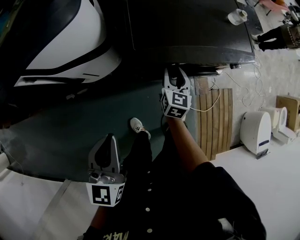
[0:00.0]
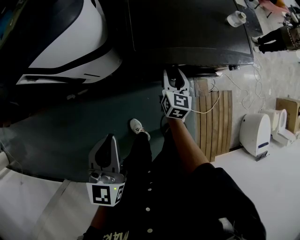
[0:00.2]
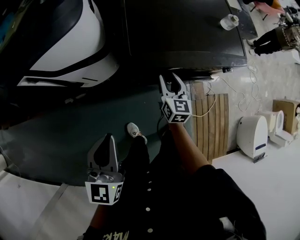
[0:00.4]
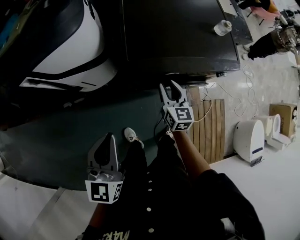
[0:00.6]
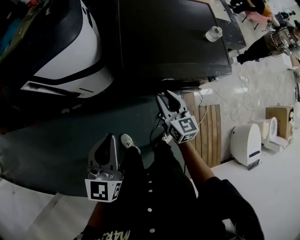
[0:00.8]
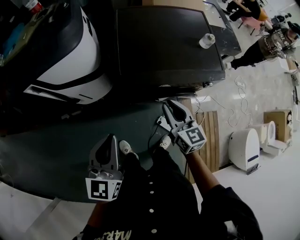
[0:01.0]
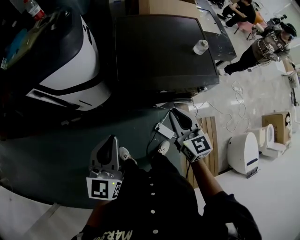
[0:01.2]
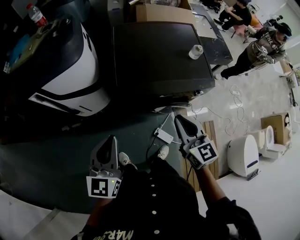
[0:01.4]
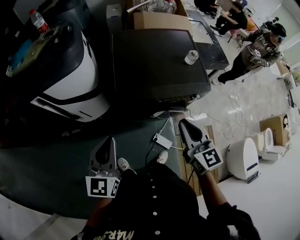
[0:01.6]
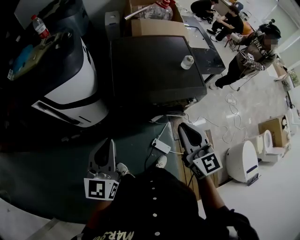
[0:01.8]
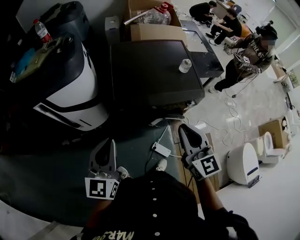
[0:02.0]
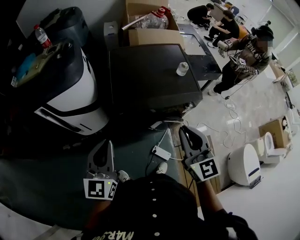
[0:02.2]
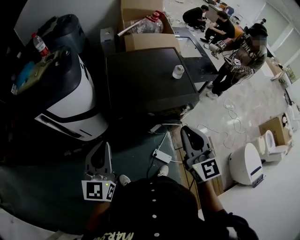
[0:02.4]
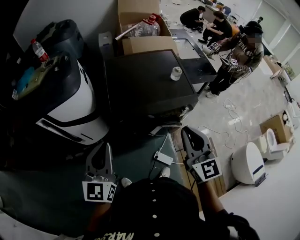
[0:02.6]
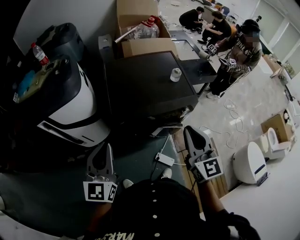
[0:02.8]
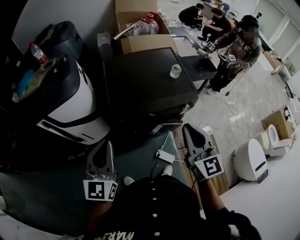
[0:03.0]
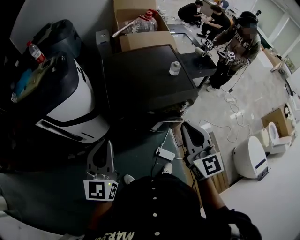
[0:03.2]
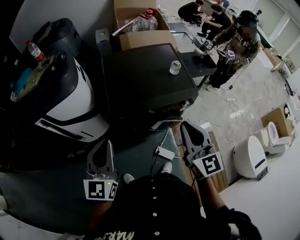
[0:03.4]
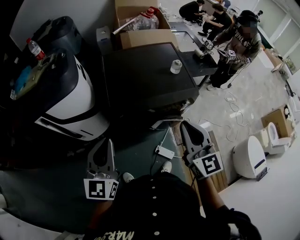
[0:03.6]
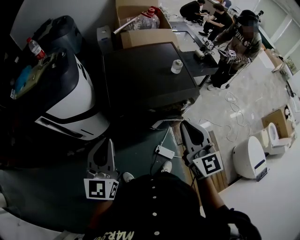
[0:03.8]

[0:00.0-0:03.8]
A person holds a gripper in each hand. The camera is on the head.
0:00.0 to 0:01.2: The right gripper travels upward and backward by roughly 20 cm, turns by some 30 degrees, and closes up, while the left gripper moves to the right and upward, roughly 10 cm.
0:01.2 to 0:02.6: The right gripper shifts some 20 cm upward and to the right, and rotates some 20 degrees; the left gripper is displaced upward by about 10 cm.
0:02.6 to 0:03.8: The two grippers keep their place.

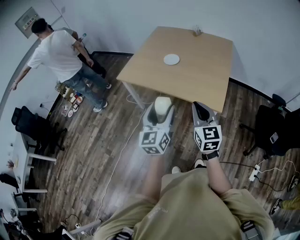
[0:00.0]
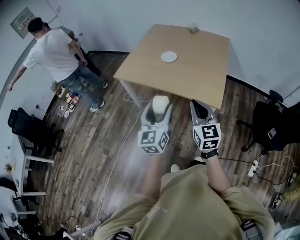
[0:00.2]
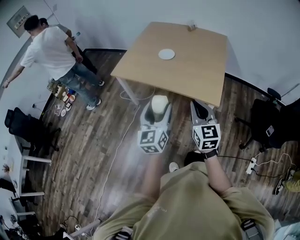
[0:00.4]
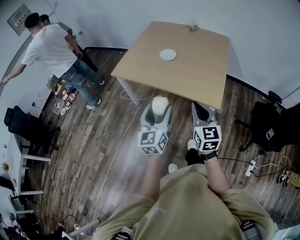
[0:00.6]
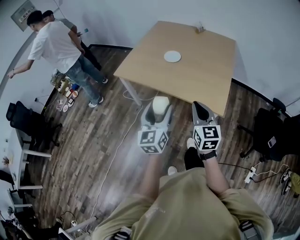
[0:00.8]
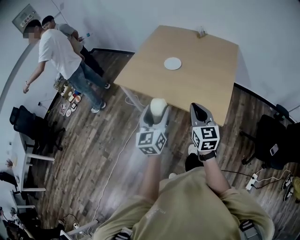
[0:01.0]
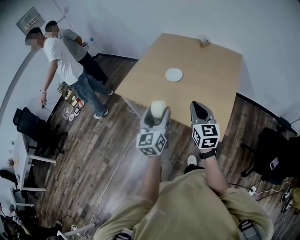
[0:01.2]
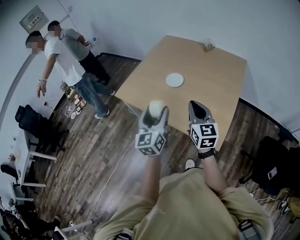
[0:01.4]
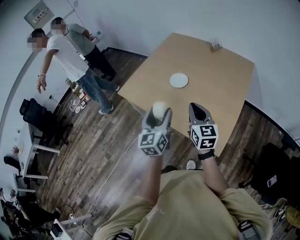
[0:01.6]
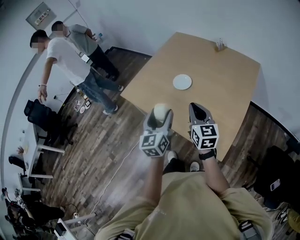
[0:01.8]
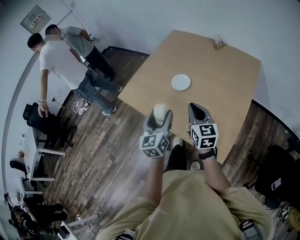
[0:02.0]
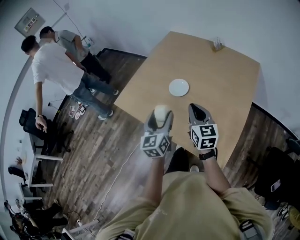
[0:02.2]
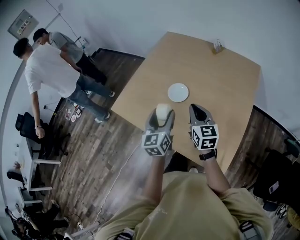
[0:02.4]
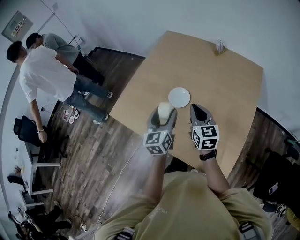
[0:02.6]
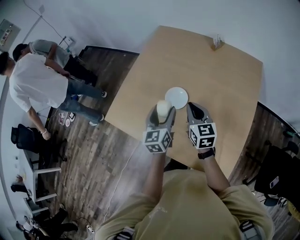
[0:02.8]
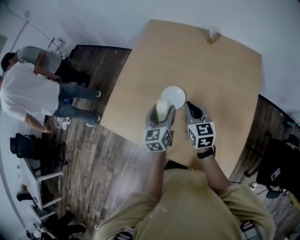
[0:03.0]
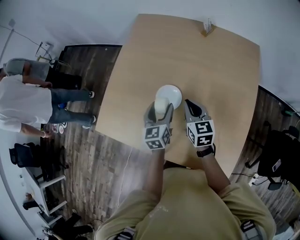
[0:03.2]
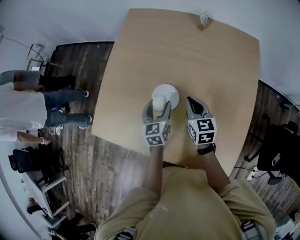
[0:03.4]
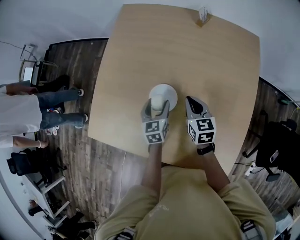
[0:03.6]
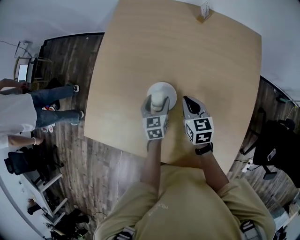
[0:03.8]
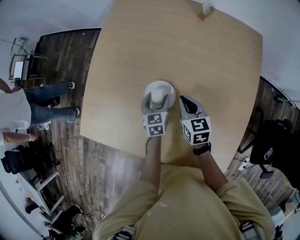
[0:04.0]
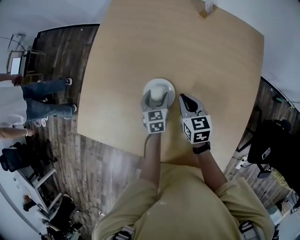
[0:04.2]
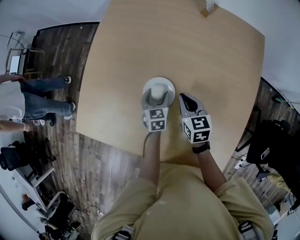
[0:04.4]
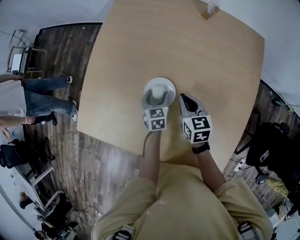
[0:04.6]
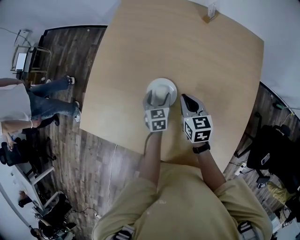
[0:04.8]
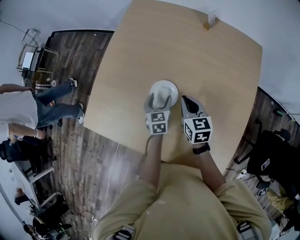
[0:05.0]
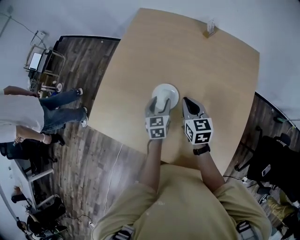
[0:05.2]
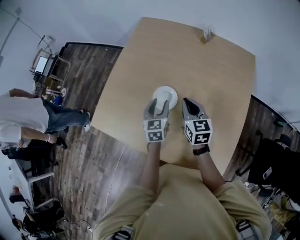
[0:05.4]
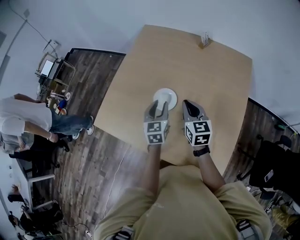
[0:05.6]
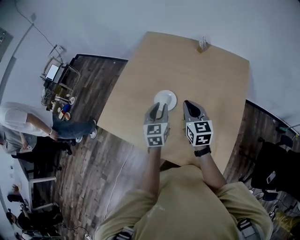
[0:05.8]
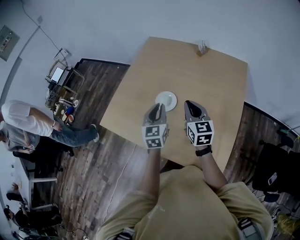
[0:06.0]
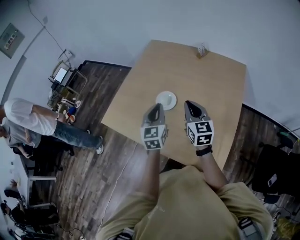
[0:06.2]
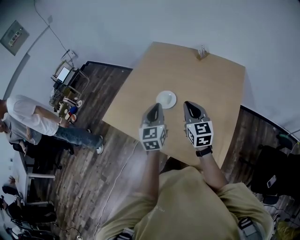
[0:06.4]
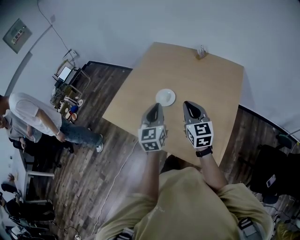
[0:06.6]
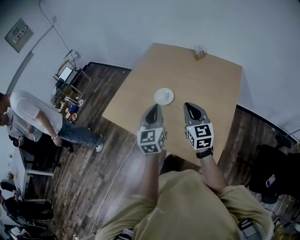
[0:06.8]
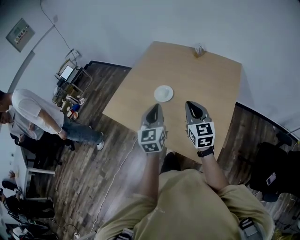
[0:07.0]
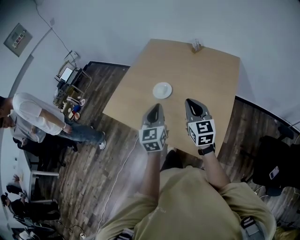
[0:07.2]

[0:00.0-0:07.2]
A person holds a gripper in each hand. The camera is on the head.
0:00.0 to 0:01.4: The grippers both shift forward by about 25 cm.
0:01.4 to 0:02.8: The two grippers go about 35 cm forward.
0:02.8 to 0:04.4: The two grippers go some 30 cm downward and forward. The right gripper swivels some 20 degrees. Meanwhile the left gripper rotates some 30 degrees.
0:04.4 to 0:05.8: Both grippers travel together upward and backward, roughly 25 cm. The right gripper rotates approximately 20 degrees. Meanwhile the left gripper rotates approximately 20 degrees, and closes.
0:05.8 to 0:07.2: The right gripper heads backward, covering some 20 cm. Meanwhile the left gripper goes some 25 cm backward and upward.

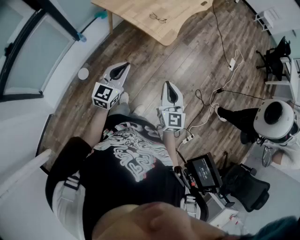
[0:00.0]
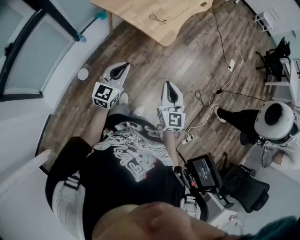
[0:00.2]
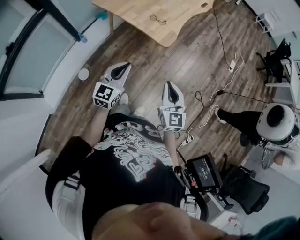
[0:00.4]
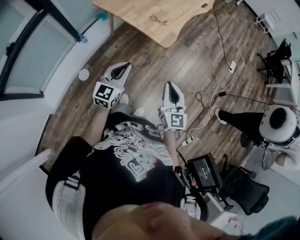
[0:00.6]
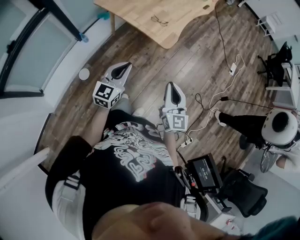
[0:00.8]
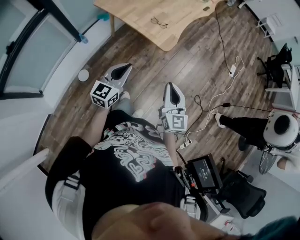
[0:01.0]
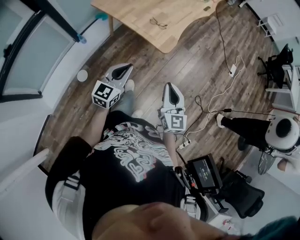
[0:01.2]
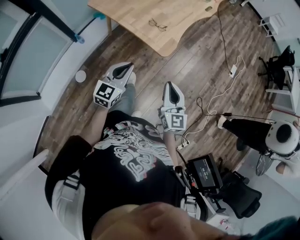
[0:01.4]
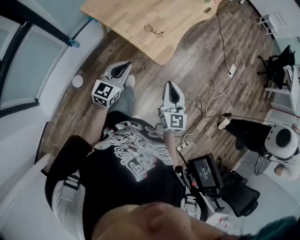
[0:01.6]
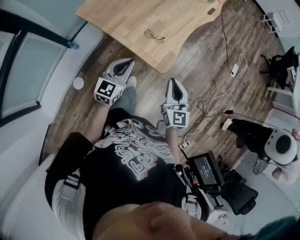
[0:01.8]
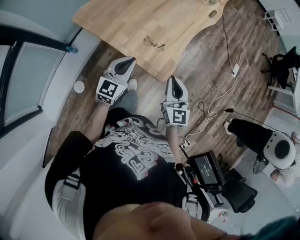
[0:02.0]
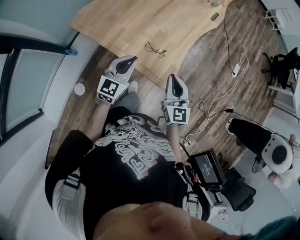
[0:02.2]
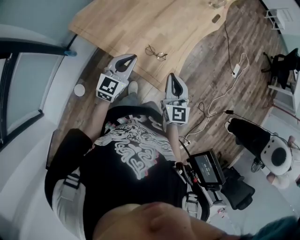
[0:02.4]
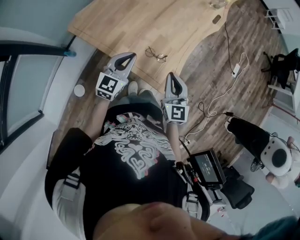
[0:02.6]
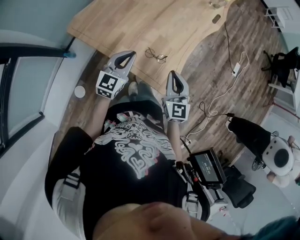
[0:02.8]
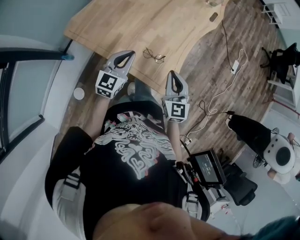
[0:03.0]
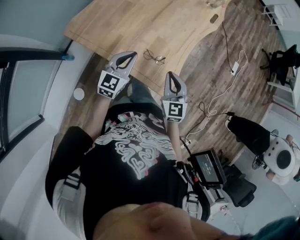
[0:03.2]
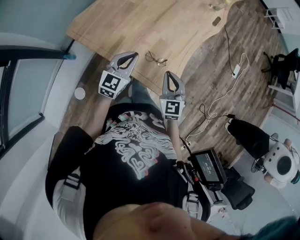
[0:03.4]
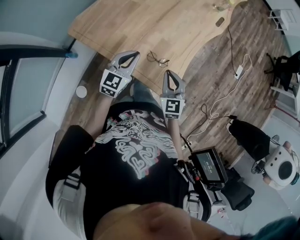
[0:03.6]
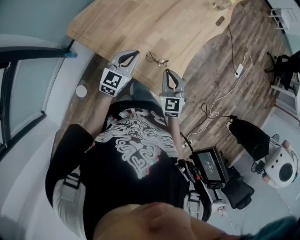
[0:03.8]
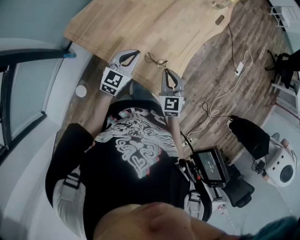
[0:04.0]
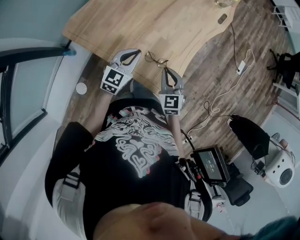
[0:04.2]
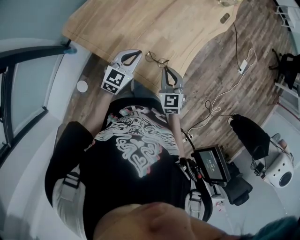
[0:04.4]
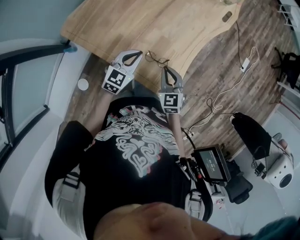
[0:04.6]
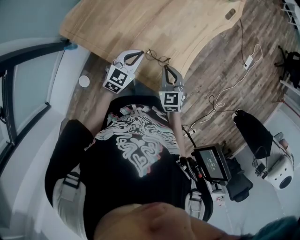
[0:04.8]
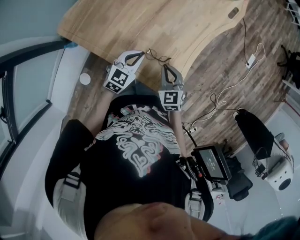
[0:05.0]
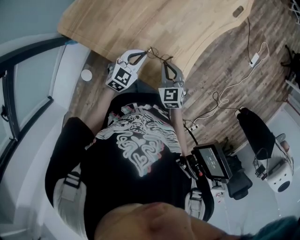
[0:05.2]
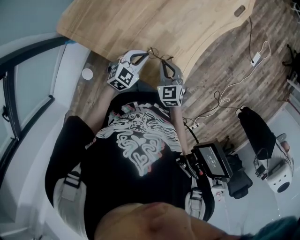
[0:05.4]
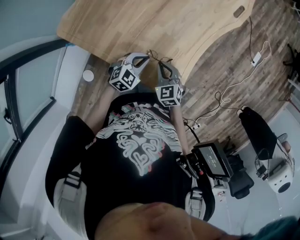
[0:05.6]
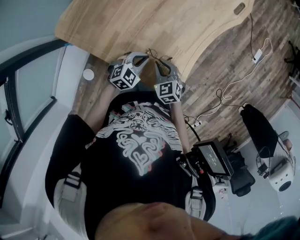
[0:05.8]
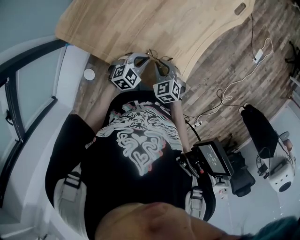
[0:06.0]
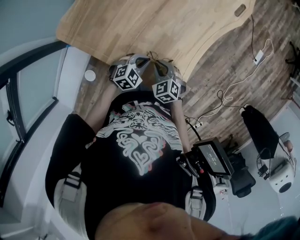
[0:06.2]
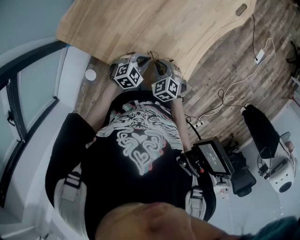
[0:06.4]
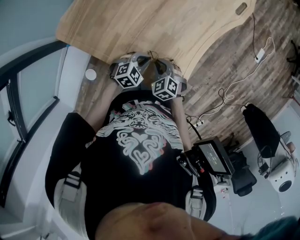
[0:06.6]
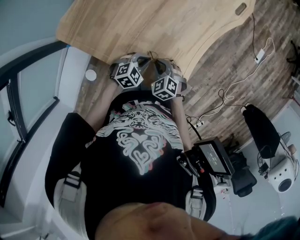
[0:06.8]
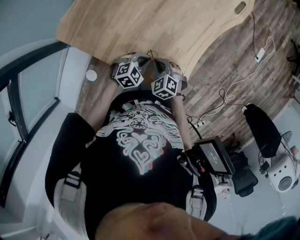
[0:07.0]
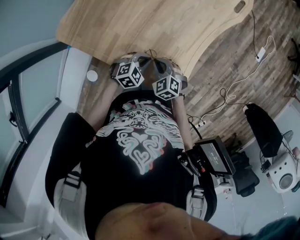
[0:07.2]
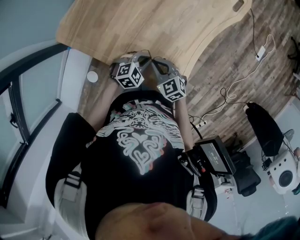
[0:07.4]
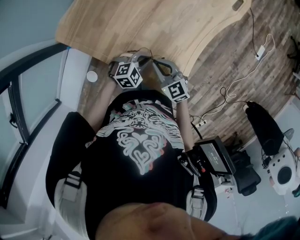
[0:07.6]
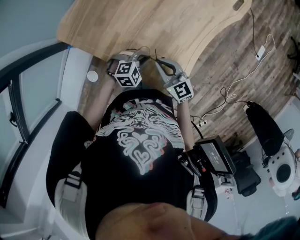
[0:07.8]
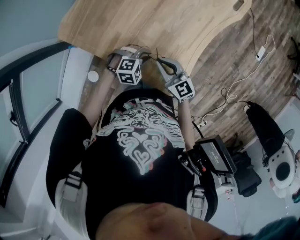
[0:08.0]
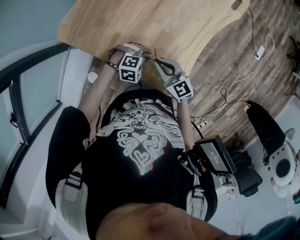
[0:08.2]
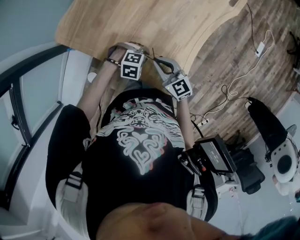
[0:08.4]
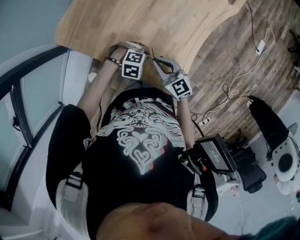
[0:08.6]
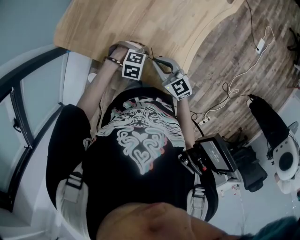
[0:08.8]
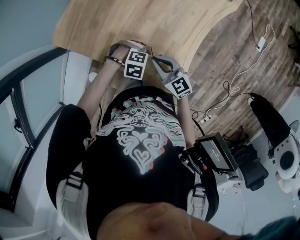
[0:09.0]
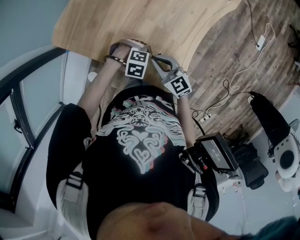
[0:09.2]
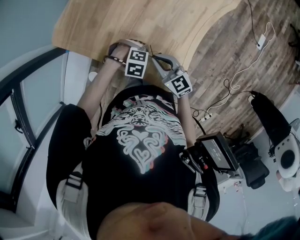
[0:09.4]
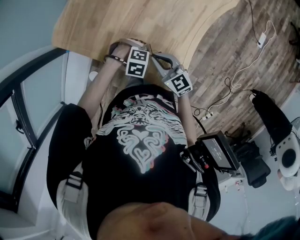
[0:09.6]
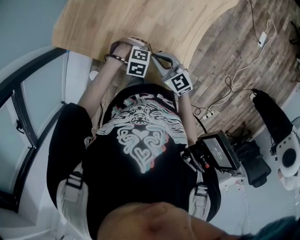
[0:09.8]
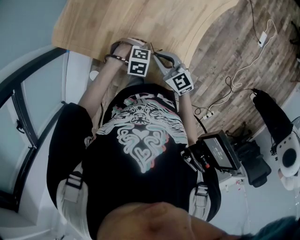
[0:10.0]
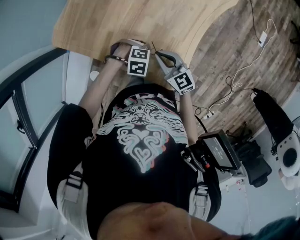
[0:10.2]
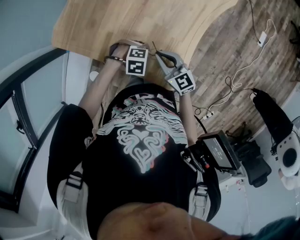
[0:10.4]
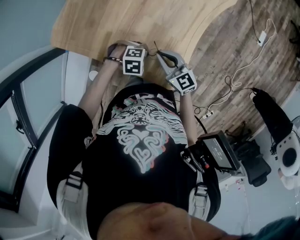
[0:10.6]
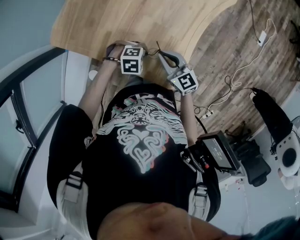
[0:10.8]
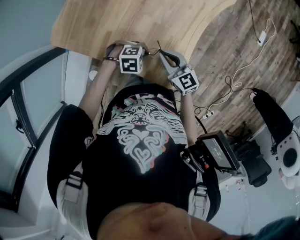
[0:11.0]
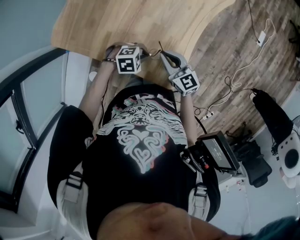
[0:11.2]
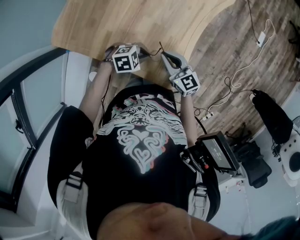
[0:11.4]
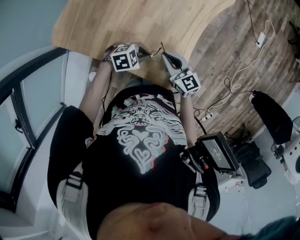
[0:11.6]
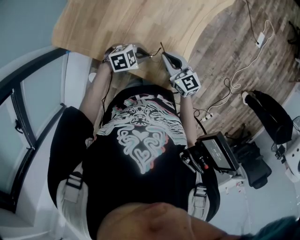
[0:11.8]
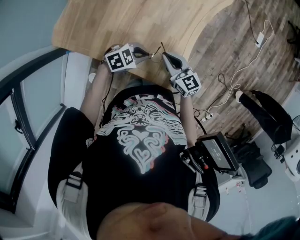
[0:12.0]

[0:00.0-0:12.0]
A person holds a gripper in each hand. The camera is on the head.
0:00.0 to 0:01.6: Both grippers travel together forward, roughly 20 cm.
0:01.6 to 0:03.0: The two grippers go roughly 30 cm forward.
0:03.0 to 0:04.4: Both grippers travel together downward and forward, roughly 10 cm.
0:04.4 to 0:06.0: The two grippers go roughly 15 cm downward. The right gripper swivels roughly 20 degrees. Meanwhile the left gripper changes its angle by approximately 30 degrees.
0:06.0 to 0:07.6: The right gripper goes about 5 cm upward, and turns by some 30 degrees.
0:07.6 to 0:09.0: The left gripper rotates approximately 40 degrees.
0:09.0 to 0:10.4: The grippers move only a little.
0:10.4 to 0:12.0: The left gripper goes roughly 5 cm upward, and changes its angle by some 30 degrees.
